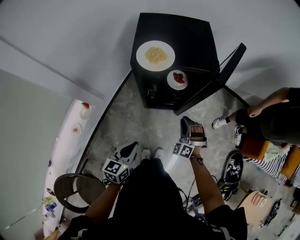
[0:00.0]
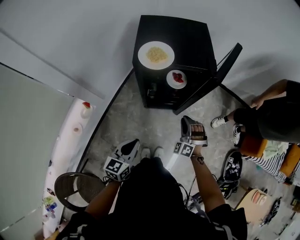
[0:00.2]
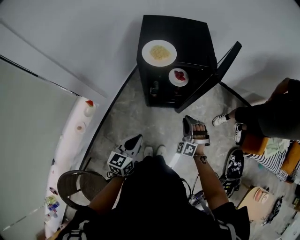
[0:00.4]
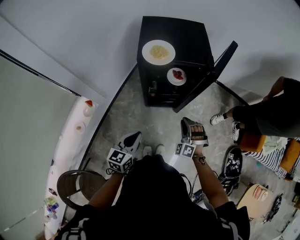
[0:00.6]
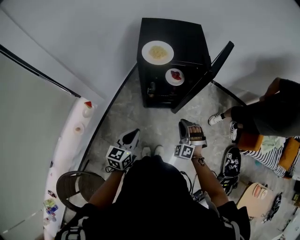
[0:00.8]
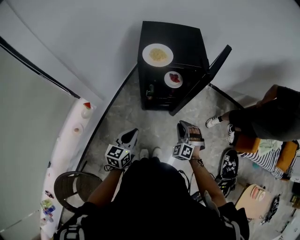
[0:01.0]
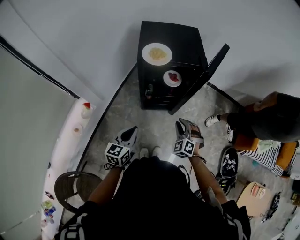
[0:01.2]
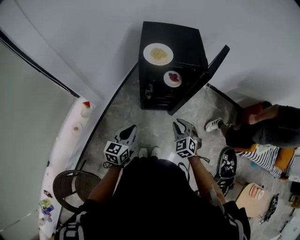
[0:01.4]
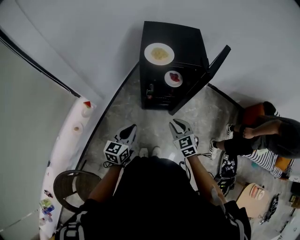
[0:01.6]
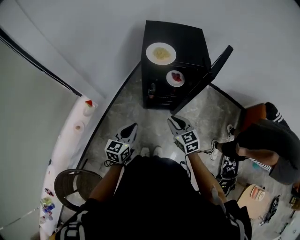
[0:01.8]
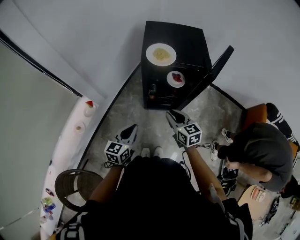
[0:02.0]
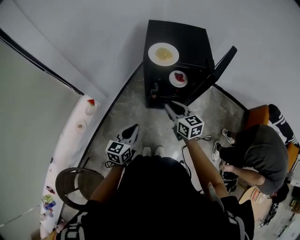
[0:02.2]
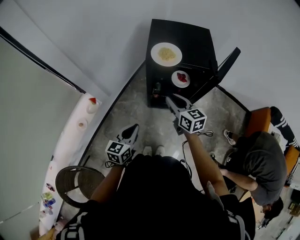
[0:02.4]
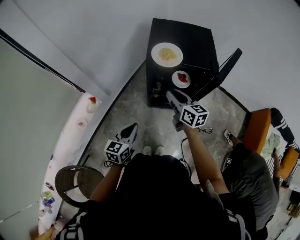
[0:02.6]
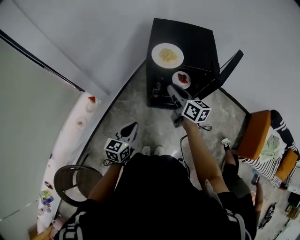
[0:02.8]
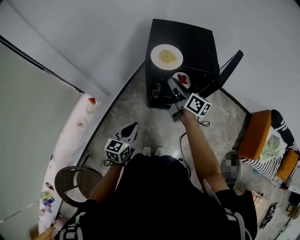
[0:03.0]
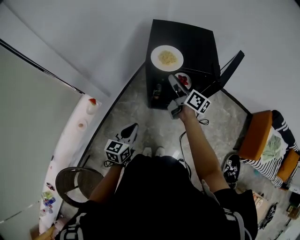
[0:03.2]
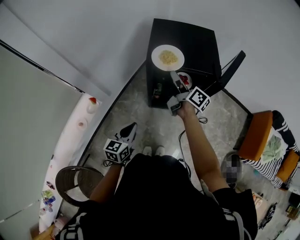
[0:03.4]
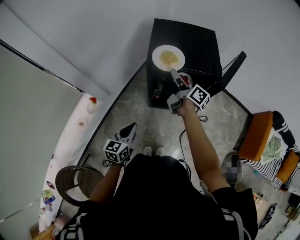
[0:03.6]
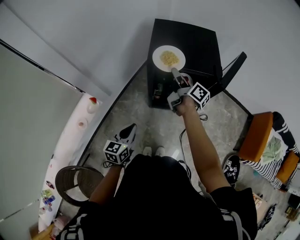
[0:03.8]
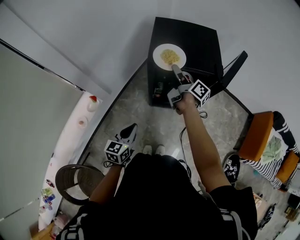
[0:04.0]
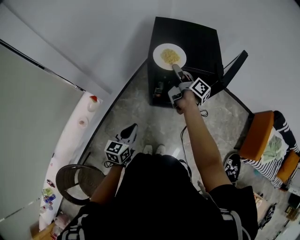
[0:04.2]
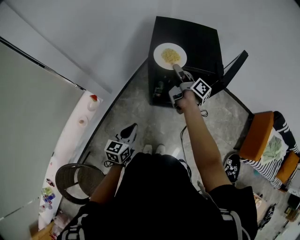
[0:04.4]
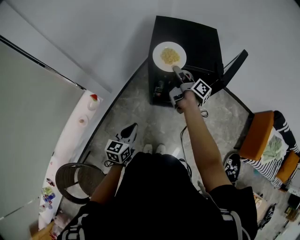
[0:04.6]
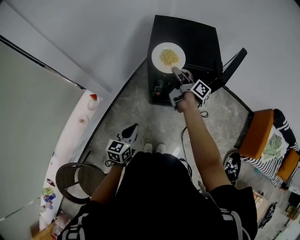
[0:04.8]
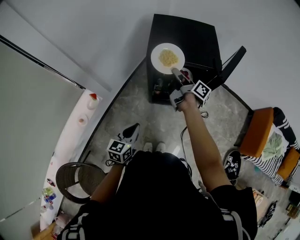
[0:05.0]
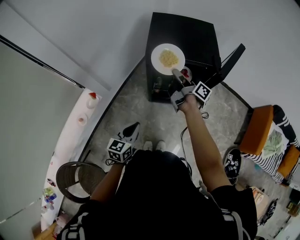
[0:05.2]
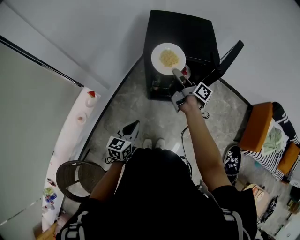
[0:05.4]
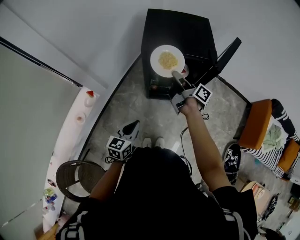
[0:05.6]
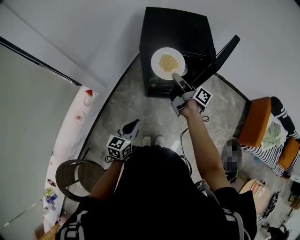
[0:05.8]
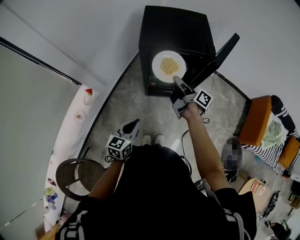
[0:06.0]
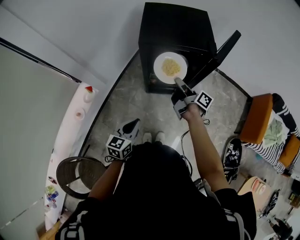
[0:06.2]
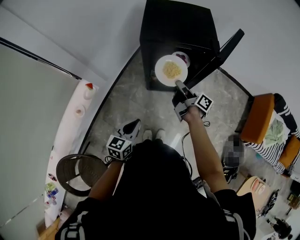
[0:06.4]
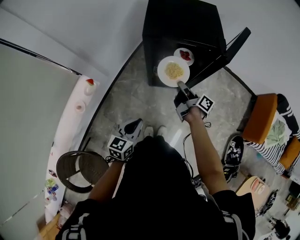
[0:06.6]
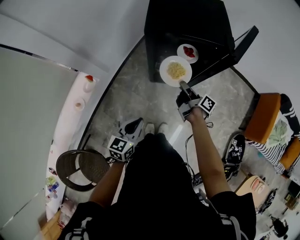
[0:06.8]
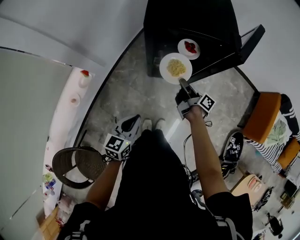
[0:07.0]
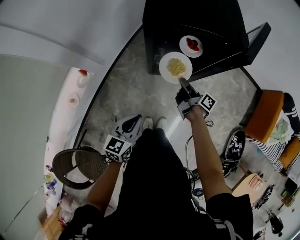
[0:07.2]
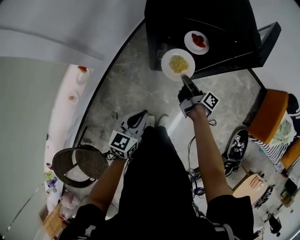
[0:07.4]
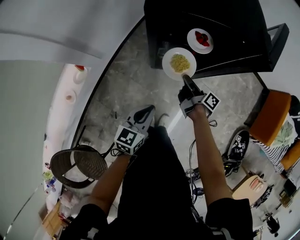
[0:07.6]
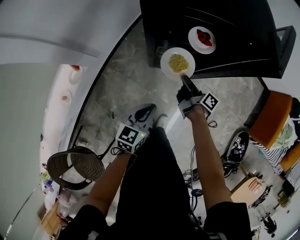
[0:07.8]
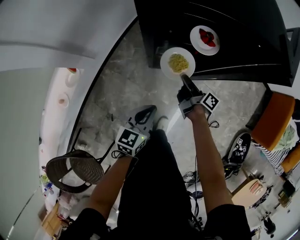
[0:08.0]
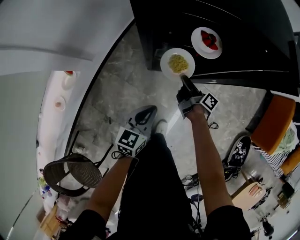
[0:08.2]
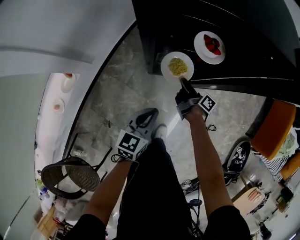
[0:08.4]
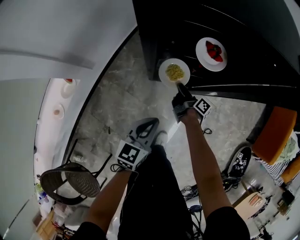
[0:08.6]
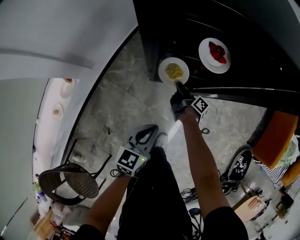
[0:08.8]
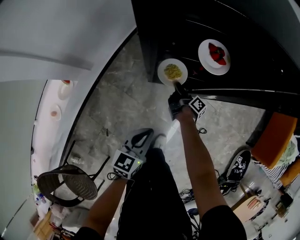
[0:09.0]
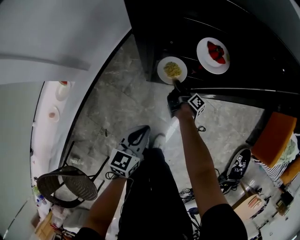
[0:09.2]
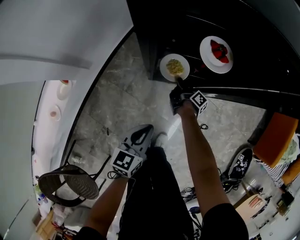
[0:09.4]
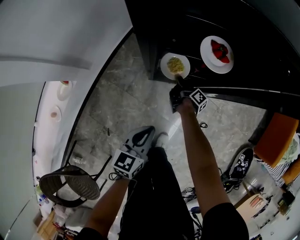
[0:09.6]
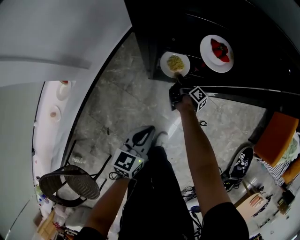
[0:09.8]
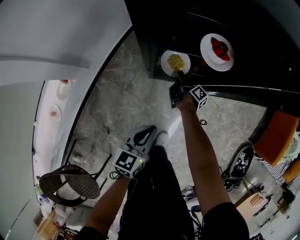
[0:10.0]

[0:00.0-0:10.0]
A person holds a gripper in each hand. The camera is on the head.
0:00.0 to 0:01.4: The right gripper travels backward and upward by about 15 cm, and turns by approximately 30 degrees. Meanwhile the left gripper goes about 5 cm upward.
0:01.4 to 0:02.8: The right gripper shifts about 20 cm forward and upward, and rotates around the line of its fingers by about 60 degrees, clockwise from behind.
0:02.8 to 0:04.2: The right gripper is displaced forward by approximately 10 cm, and rolls clockwise, seen from behind, by about 40 degrees.
0:04.2 to 0:05.8: The right gripper is displaced backward by roughly 10 cm; the left gripper changes place by roughly 5 cm.
0:05.8 to 0:07.2: The right gripper heads downward, covering about 20 cm, while the left gripper shifts approximately 5 cm downward.
0:07.2 to 0:08.6: The left gripper heads downward and forward, covering roughly 20 cm. The right gripper goes roughly 25 cm downward.
0:08.6 to 0:10.0: The right gripper is displaced downward and forward by about 10 cm.

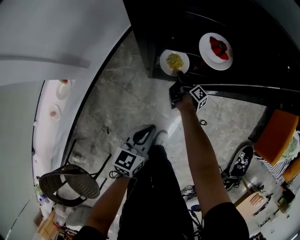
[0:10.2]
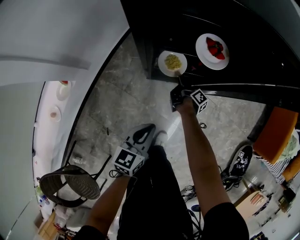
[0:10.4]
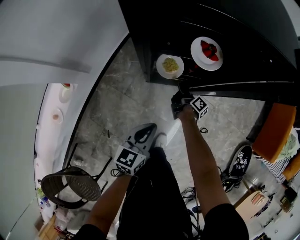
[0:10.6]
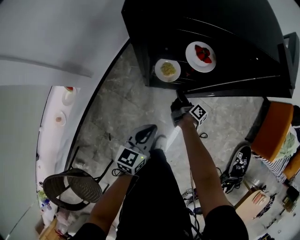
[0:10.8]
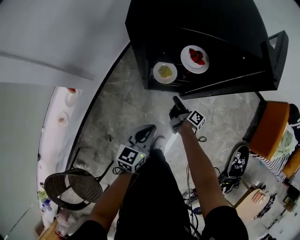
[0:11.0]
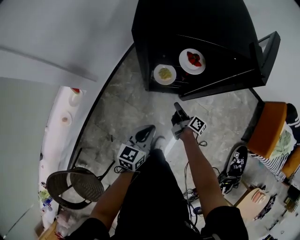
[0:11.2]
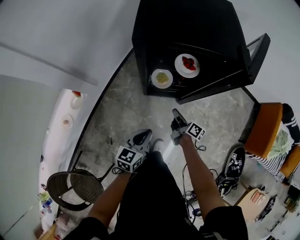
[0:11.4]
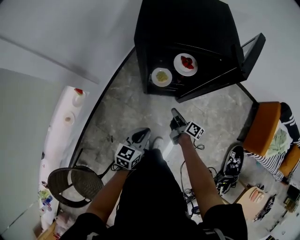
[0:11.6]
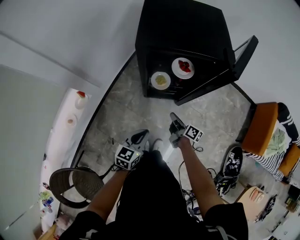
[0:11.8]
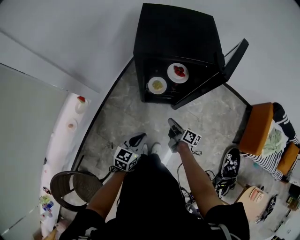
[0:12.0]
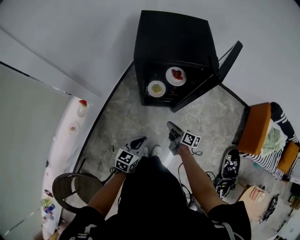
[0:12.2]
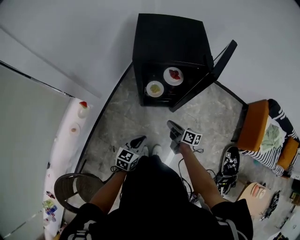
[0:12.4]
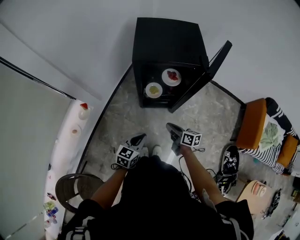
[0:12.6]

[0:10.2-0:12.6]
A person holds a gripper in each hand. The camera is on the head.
0:10.2 to 0:11.4: The left gripper goes some 15 cm upward, while the right gripper shifts approximately 30 cm upward and backward, and turns by approximately 30 degrees.
0:11.4 to 0:12.6: The left gripper heads upward and backward, covering about 10 cm; the right gripper shifts approximately 20 cm upward and backward, and rotates about 30 degrees.

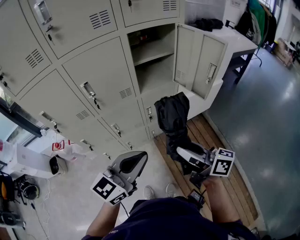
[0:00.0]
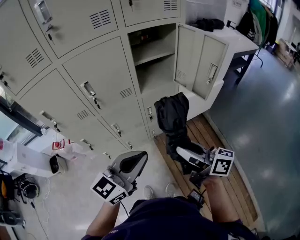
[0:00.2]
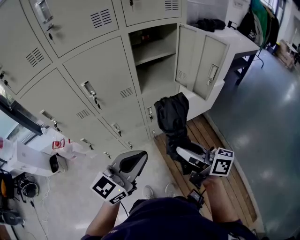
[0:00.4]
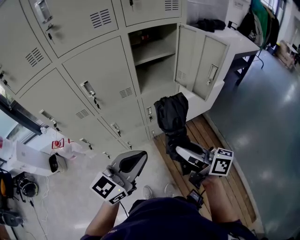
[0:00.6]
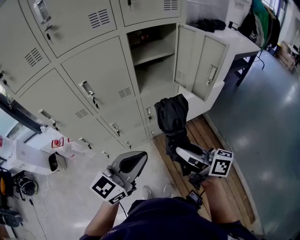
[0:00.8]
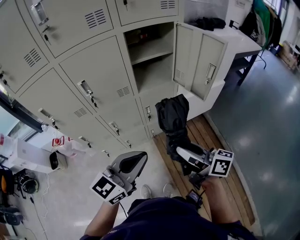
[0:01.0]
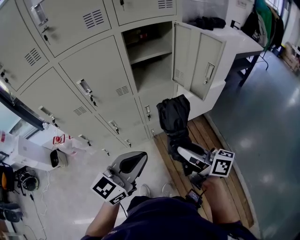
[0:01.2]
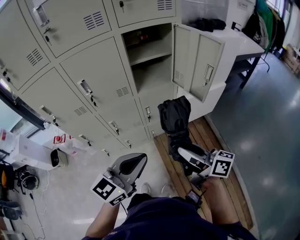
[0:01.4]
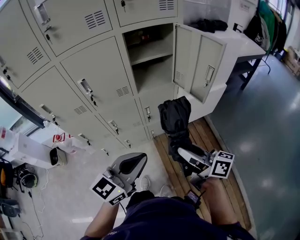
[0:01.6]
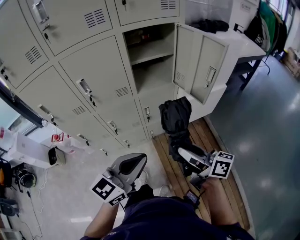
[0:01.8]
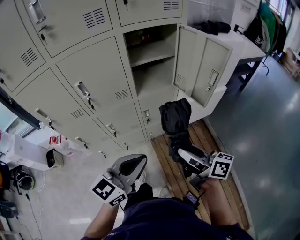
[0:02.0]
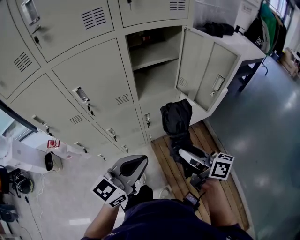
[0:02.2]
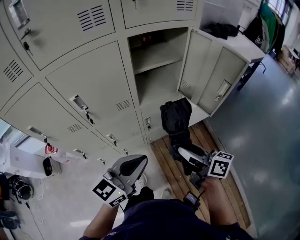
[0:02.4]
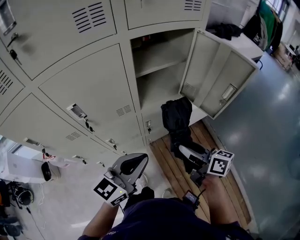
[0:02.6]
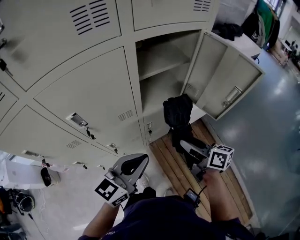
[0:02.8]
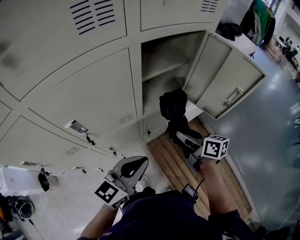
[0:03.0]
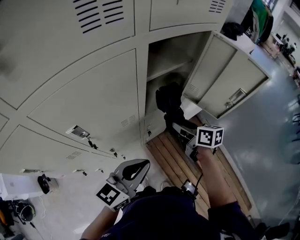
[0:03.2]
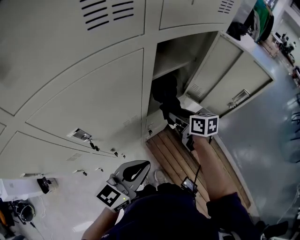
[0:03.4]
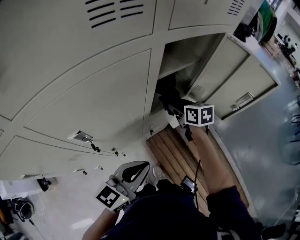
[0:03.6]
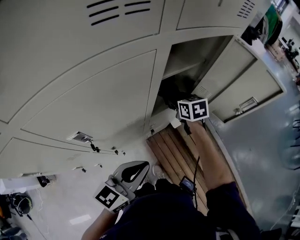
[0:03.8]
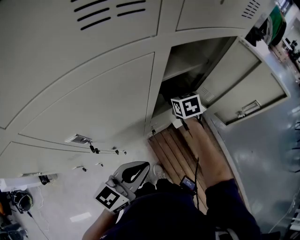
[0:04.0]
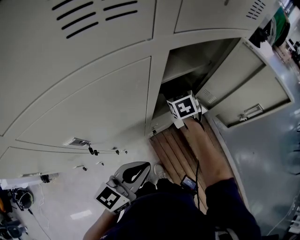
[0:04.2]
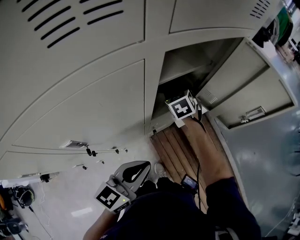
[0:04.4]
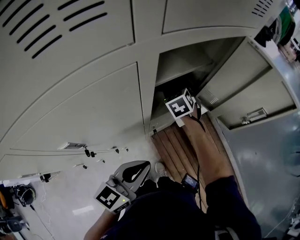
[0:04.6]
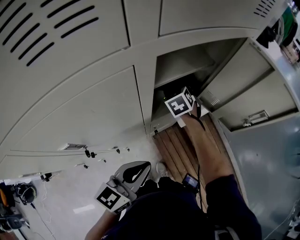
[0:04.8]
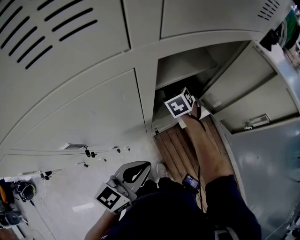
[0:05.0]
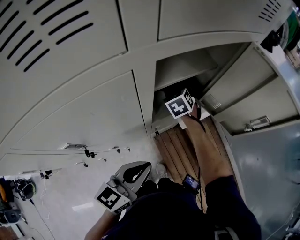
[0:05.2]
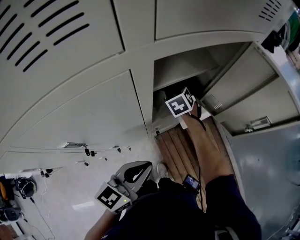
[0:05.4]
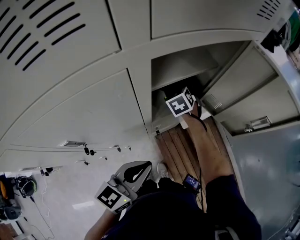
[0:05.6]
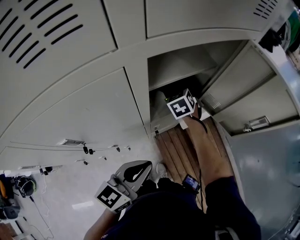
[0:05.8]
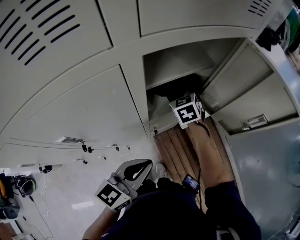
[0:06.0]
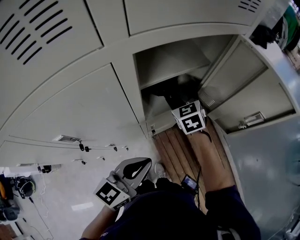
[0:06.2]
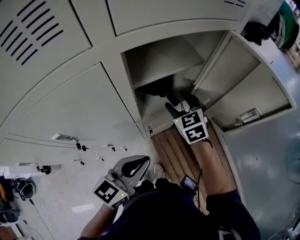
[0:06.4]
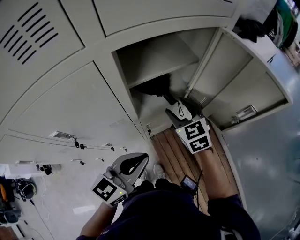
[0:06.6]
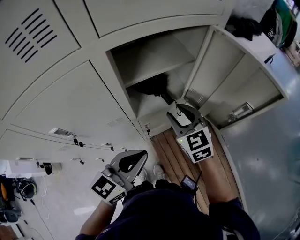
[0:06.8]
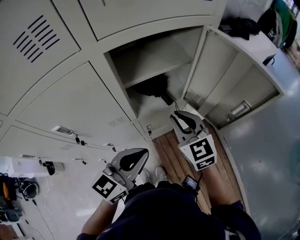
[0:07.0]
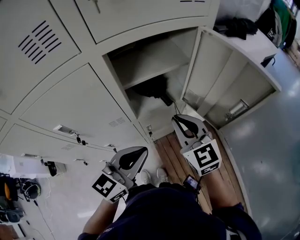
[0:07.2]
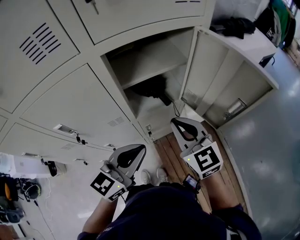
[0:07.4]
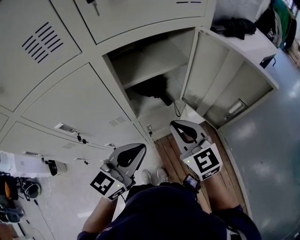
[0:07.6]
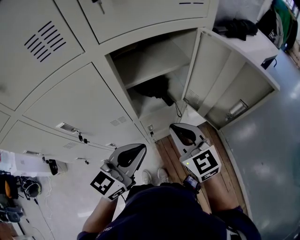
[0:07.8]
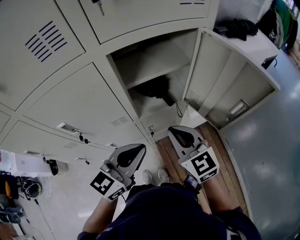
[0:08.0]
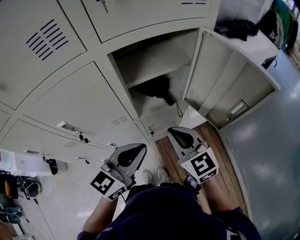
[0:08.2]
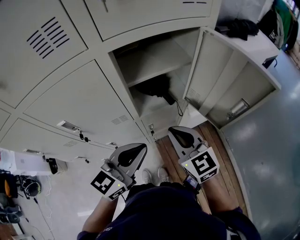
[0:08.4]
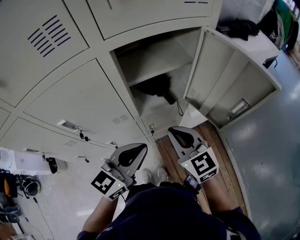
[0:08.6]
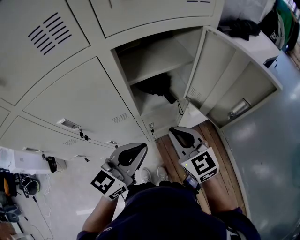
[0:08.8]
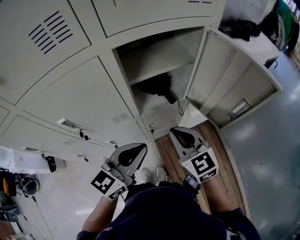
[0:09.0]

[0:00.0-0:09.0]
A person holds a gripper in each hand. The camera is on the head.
0:00.0 to 0:01.6: The two grippers go approximately 5 cm to the right.
0:01.6 to 0:03.0: The left gripper moves forward and to the left, roughly 25 cm, while the right gripper travels forward by some 25 cm, and turns by approximately 30 degrees.
0:03.0 to 0:04.4: The left gripper is displaced forward by some 5 cm. Meanwhile the right gripper goes about 25 cm forward and to the left, and twists about 50 degrees counterclockwise, seen from behind.
0:04.4 to 0:06.0: The grippers move only a little.
0:06.0 to 0:07.6: The left gripper travels upward and to the right by approximately 10 cm; the right gripper travels backward and upward by roughly 25 cm, turns by approximately 30 degrees, and closes up.
0:07.6 to 0:09.0: There are only small adjustments of the grippers.

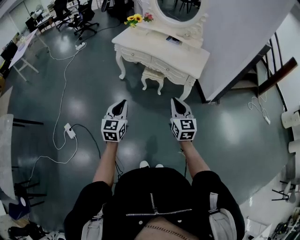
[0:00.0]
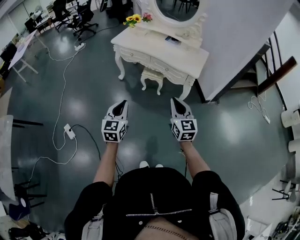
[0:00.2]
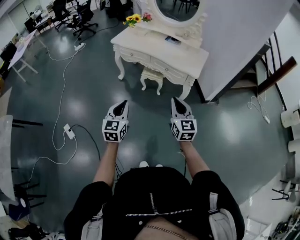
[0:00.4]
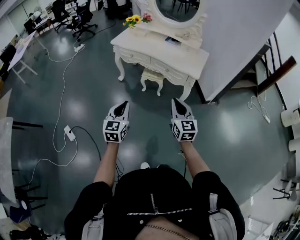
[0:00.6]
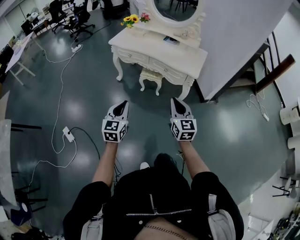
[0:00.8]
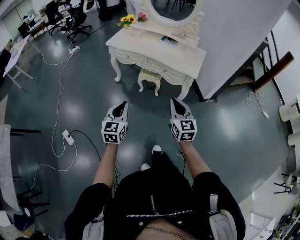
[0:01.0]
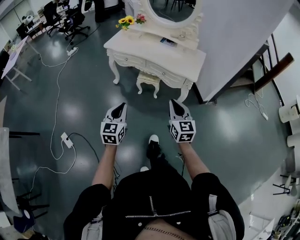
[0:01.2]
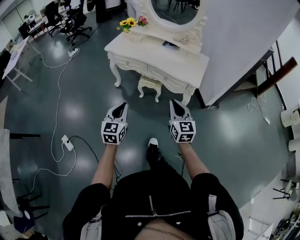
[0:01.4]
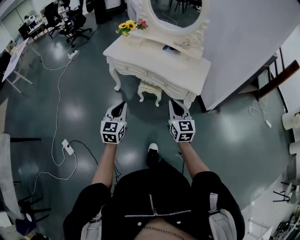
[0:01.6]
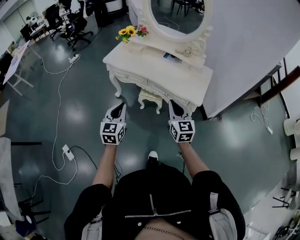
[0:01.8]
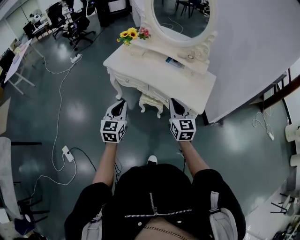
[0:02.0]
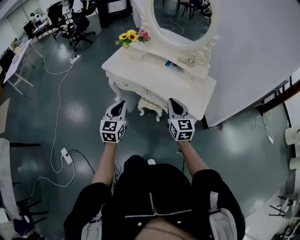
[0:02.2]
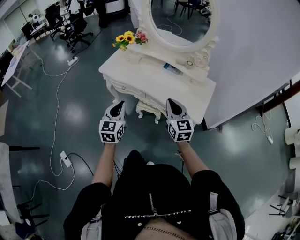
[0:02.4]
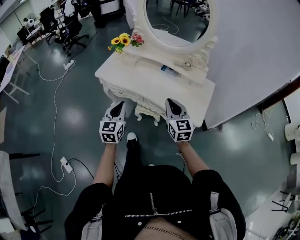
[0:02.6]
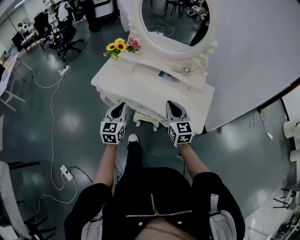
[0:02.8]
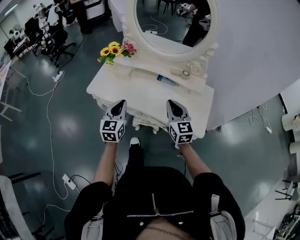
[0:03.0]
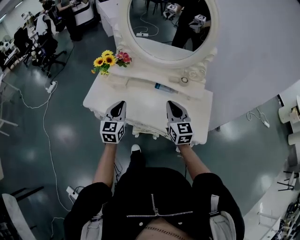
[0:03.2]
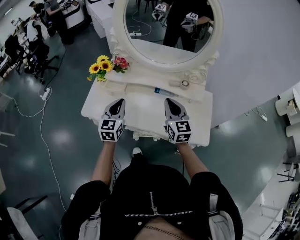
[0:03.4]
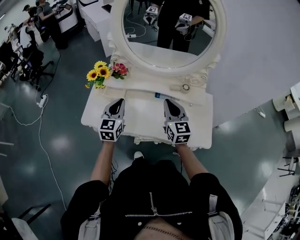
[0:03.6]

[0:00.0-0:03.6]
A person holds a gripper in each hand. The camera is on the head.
0:00.0 to 0:01.8: Both grippers move forward, about 25 cm.
0:01.8 to 0:03.6: The pair of grippers is taken forward, about 50 cm.
